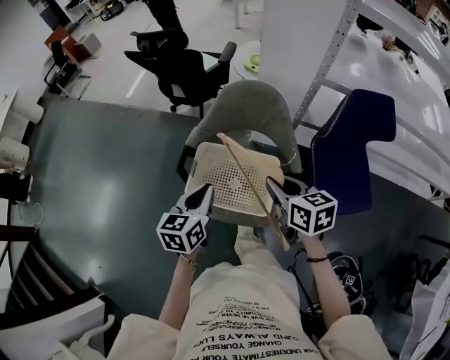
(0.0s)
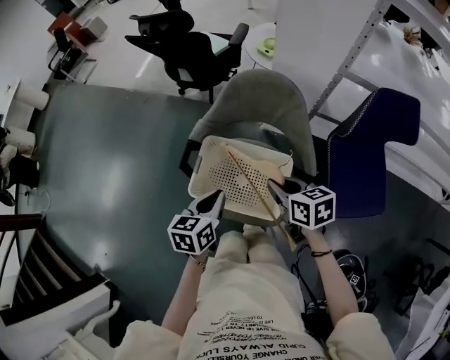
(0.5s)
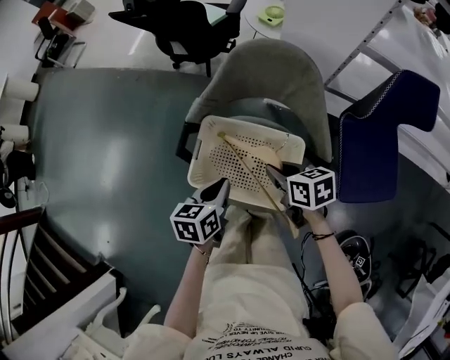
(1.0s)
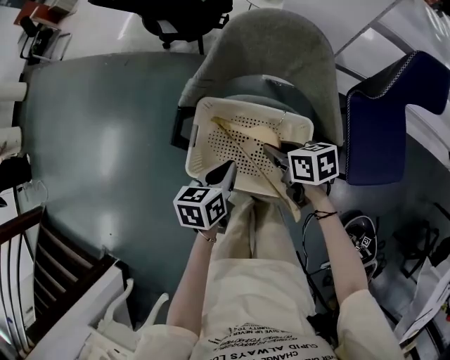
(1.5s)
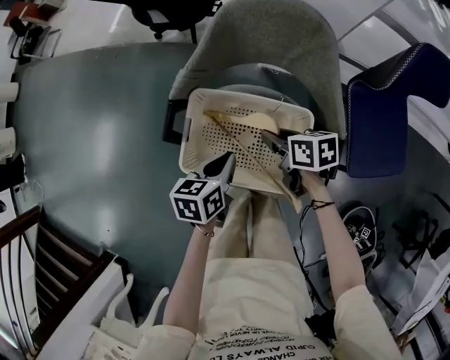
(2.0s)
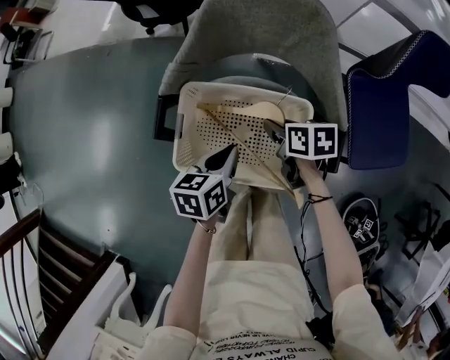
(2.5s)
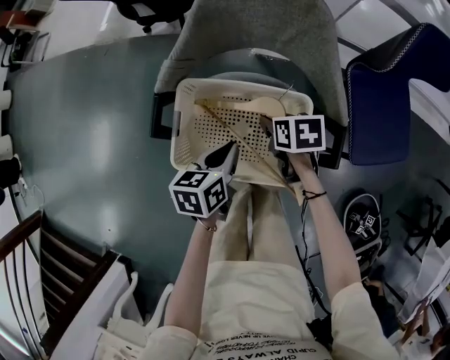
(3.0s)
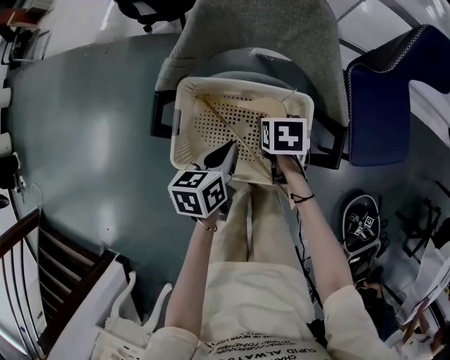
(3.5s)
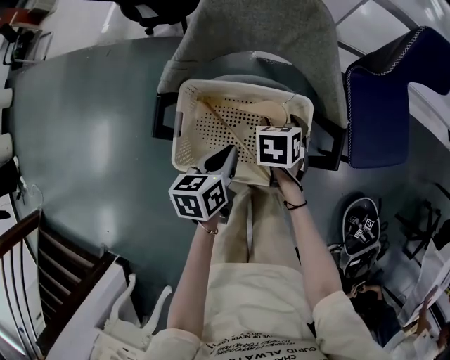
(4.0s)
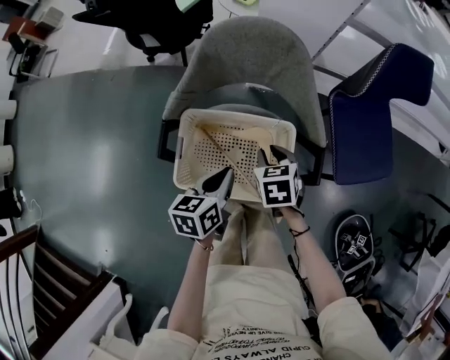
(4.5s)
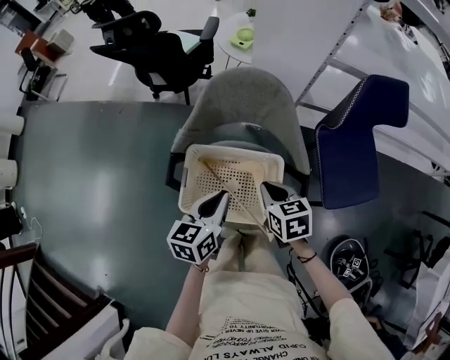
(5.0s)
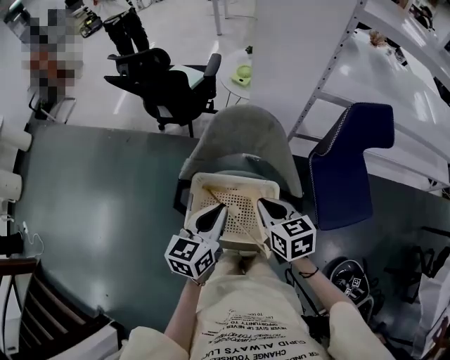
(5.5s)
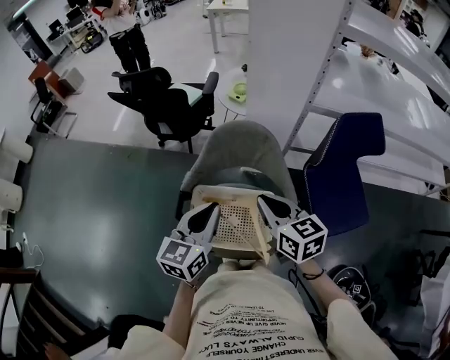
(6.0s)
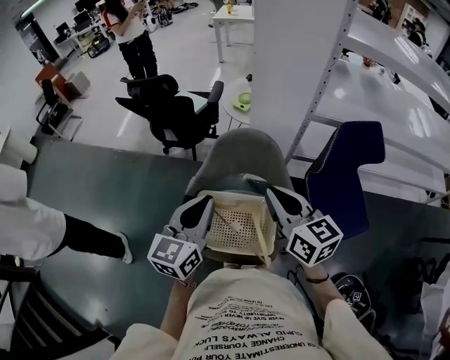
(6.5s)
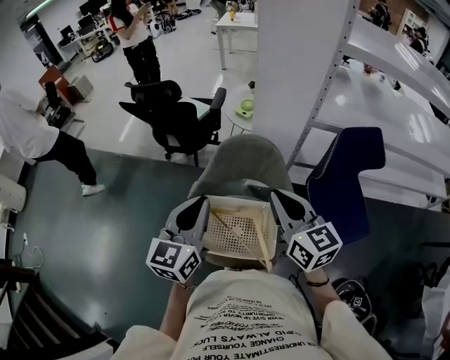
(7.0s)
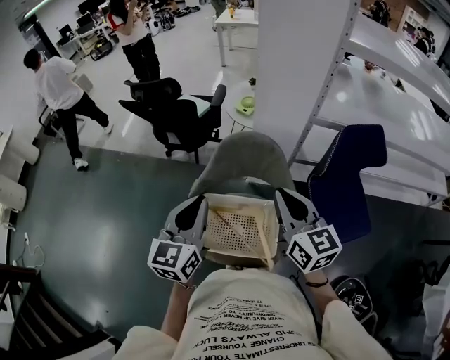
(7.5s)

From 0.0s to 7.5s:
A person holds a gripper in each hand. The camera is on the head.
From 0.0s to 2.0s: Both grippers travel together downward, approximately 20 cm. The left gripper changes its angle by approximately 20 degrees. Meanwhile the right gripper turns by about 30 degrees.
From 2.0s to 4.0s: The right gripper changes place by roughly 5 cm, changes its angle by some 50 degrees, and opens its fingers.
From 4.0s to 5.5s: Both grippers move upward, approximately 25 cm. The right gripper points its fingers some 30 degrees further upward, and closes its fingers. Meanwhile the left gripper turns by some 30 degrees.
From 5.5s to 7.5s: The left gripper travels upward and to the left by approximately 15 cm; the right gripper heads upward, covering approximately 20 cm, and turns by about 30 degrees.

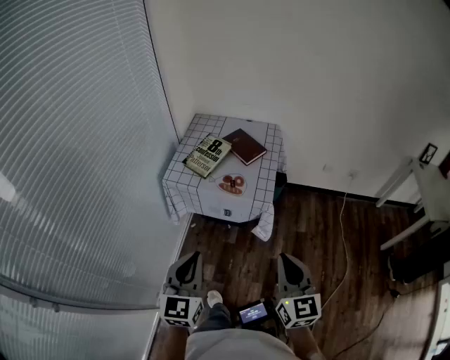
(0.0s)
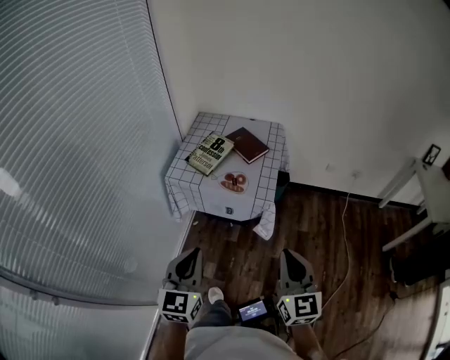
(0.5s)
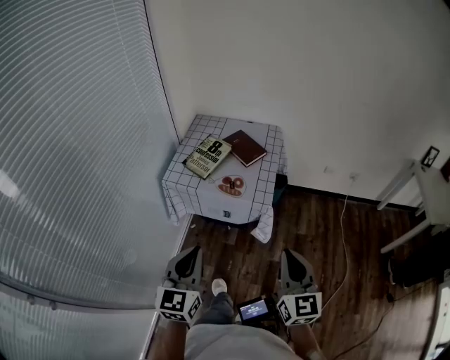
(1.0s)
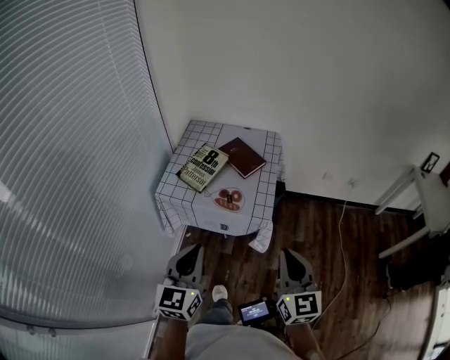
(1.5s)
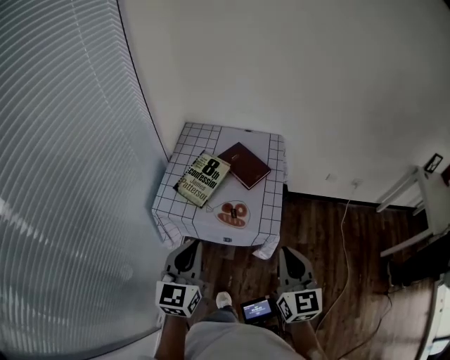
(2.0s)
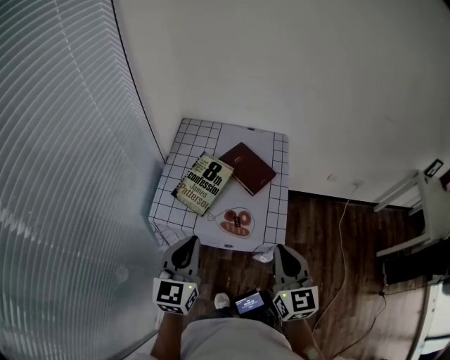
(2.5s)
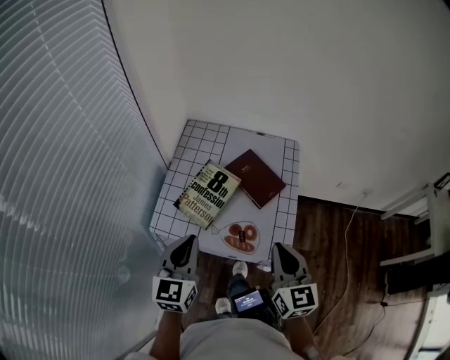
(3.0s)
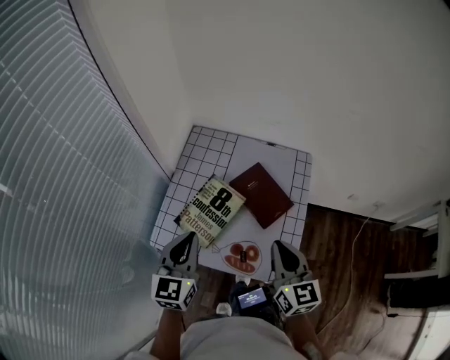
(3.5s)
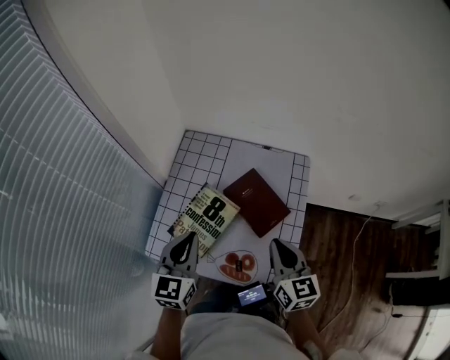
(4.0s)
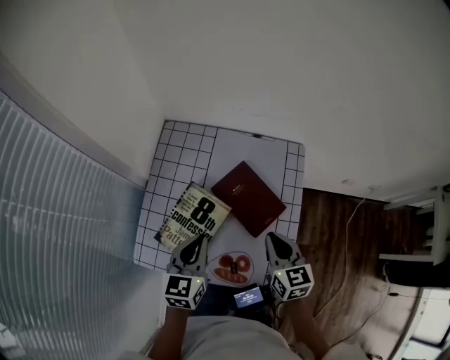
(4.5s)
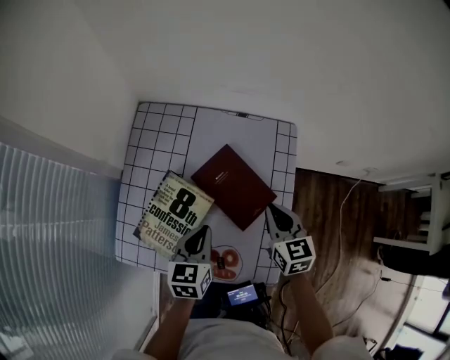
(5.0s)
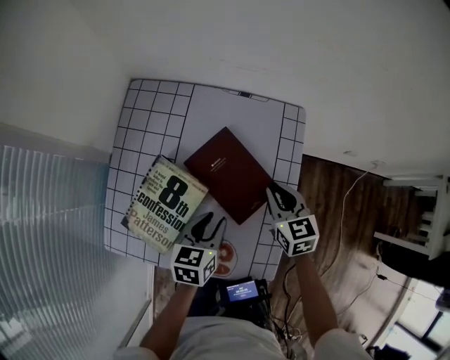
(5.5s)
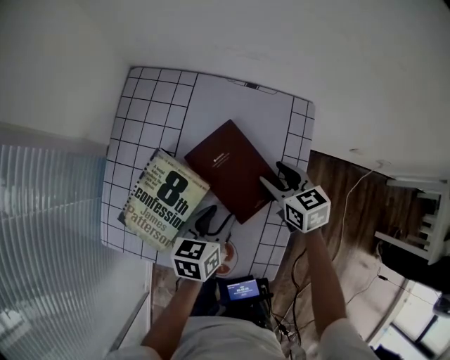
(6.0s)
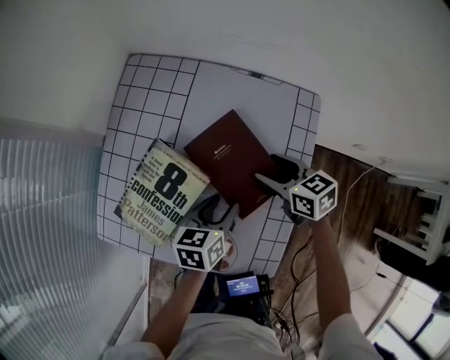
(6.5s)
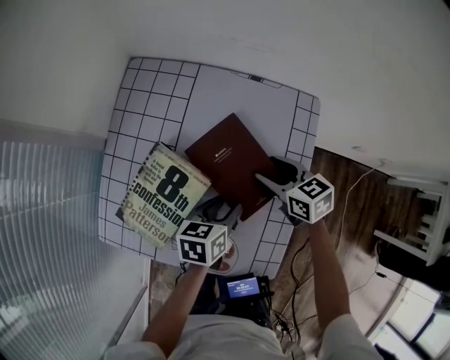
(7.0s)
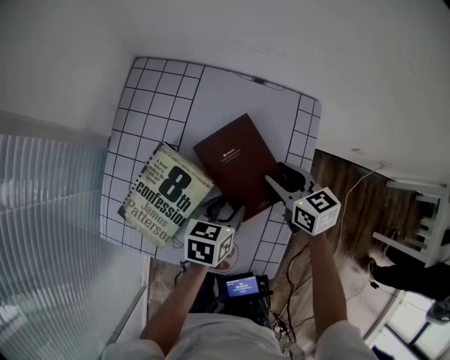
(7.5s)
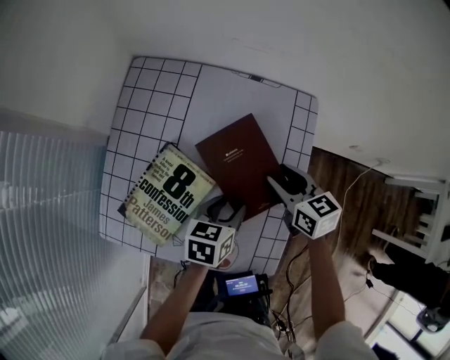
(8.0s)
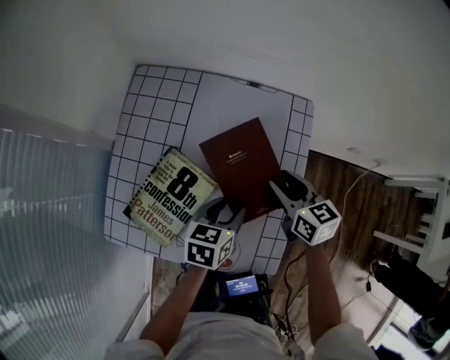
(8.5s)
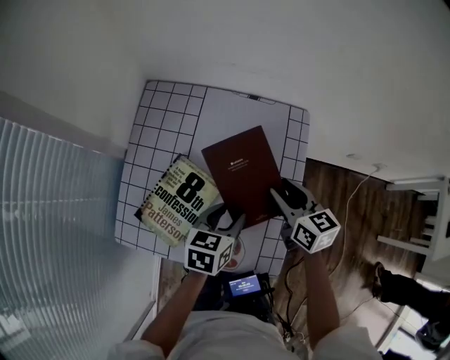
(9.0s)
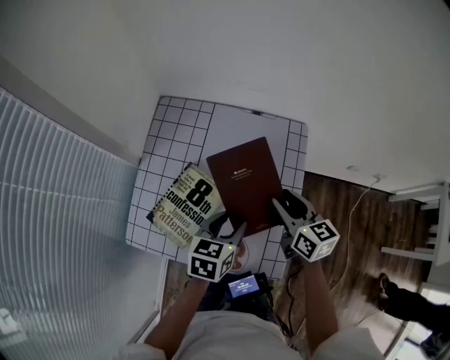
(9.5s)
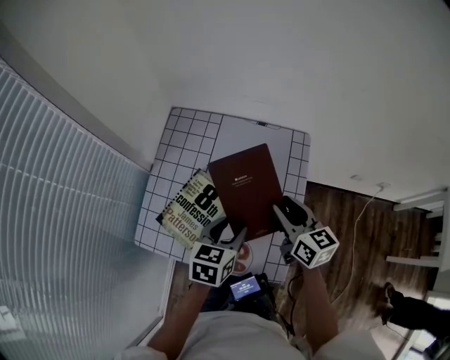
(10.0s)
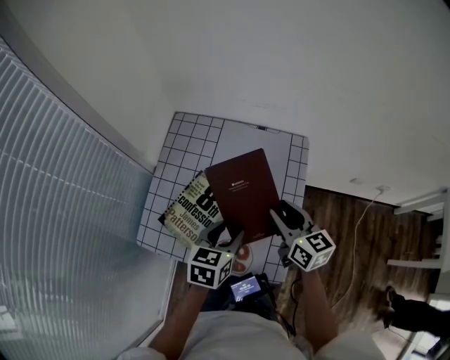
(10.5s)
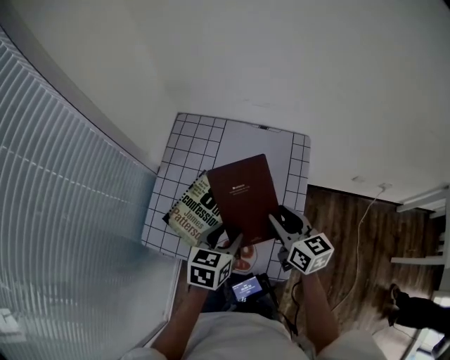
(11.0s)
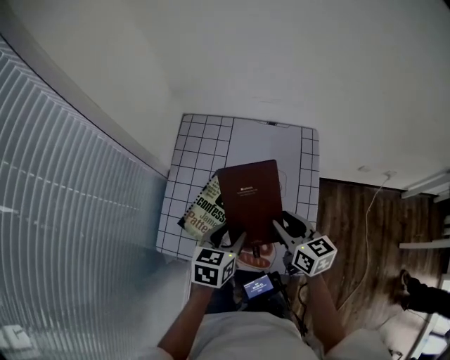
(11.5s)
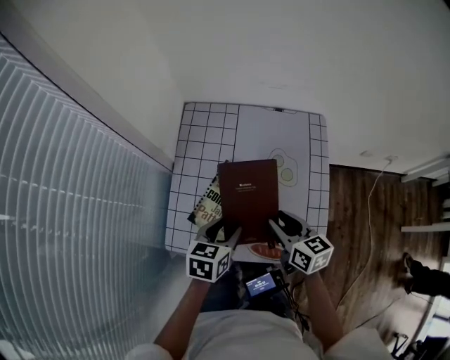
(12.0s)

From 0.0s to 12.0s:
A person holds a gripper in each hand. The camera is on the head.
From 0.0s to 2.0s: The grippers both shift forward by about 20 cm.
From 2.0s to 4.0s: Both grippers travel together forward, roughly 30 cm.
From 4.0s to 6.0s: The left gripper is displaced downward and to the right by roughly 30 cm, changes its angle by roughly 40 degrees, and opens its fingers, while the right gripper moves downward and forward, roughly 25 cm, rotates approximately 30 degrees, and opens.
From 6.0s to 8.0s: The grippers make only small movements.
From 8.0s to 10.0s: The left gripper is displaced upward by approximately 15 cm. The right gripper is displaced upward and backward by roughly 15 cm.
From 10.0s to 12.0s: The left gripper travels to the left by roughly 15 cm. Meanwhile the right gripper goes roughly 15 cm to the left, backward and downward.

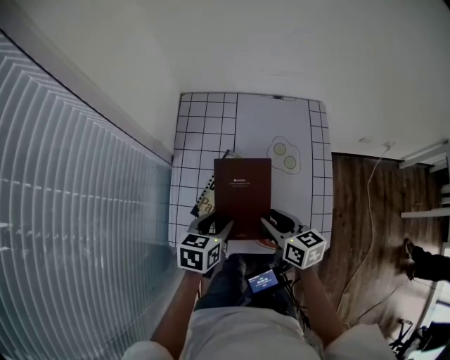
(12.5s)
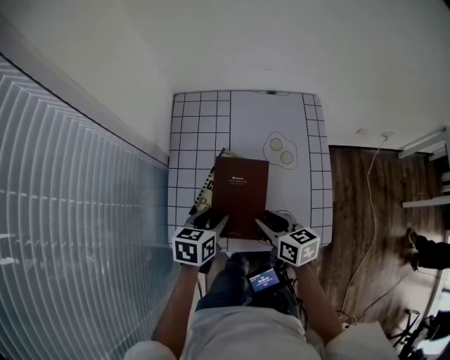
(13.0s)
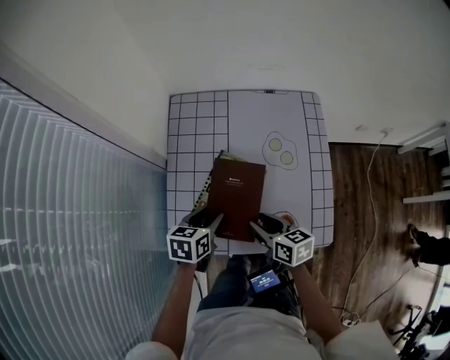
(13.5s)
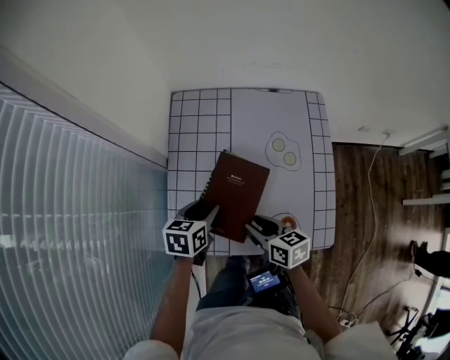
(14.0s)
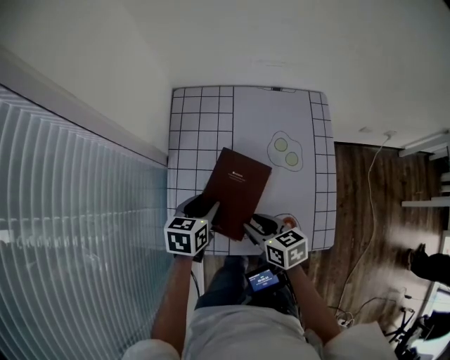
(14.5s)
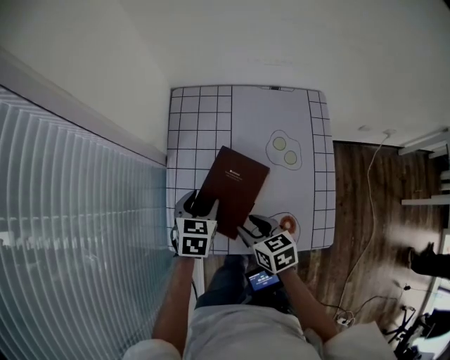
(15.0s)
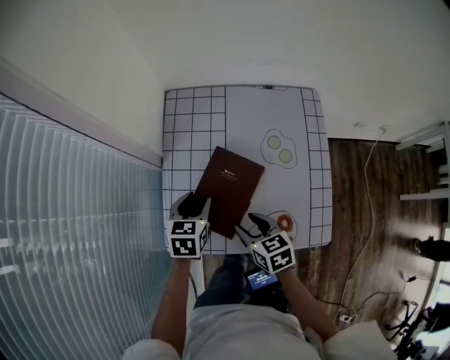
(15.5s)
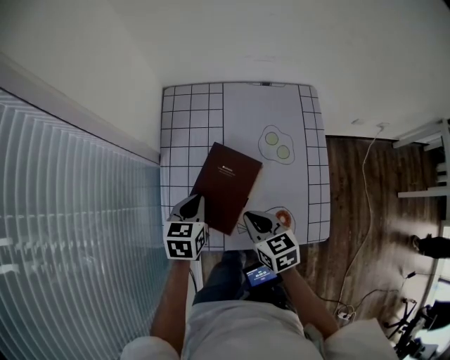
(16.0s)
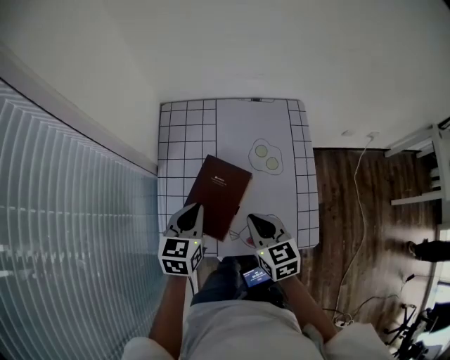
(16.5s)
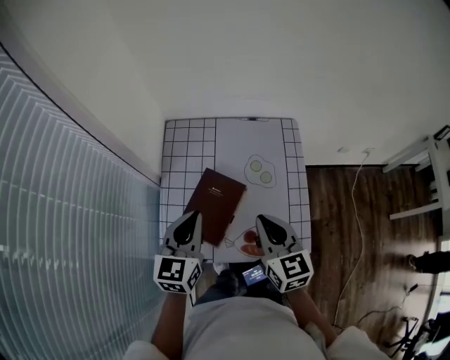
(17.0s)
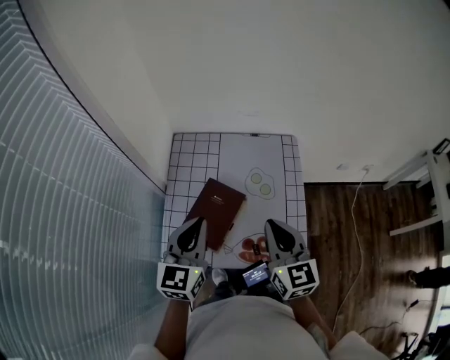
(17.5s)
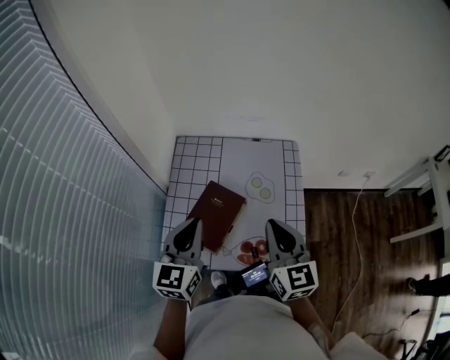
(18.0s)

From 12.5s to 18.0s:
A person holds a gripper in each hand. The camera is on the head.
From 12.5s to 14.5s: The right gripper shifts some 5 cm to the left; the left gripper moves forward, roughly 5 cm.
From 14.5s to 16.0s: The left gripper closes up; the right gripper closes.
From 16.0s to 18.0s: The right gripper heads upward and to the right, covering approximately 25 cm, and swivels approximately 40 degrees. Meanwhile the left gripper goes approximately 25 cm upward, and angles its fingers upward, by about 30 degrees.

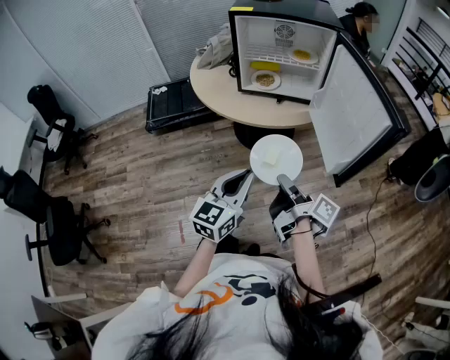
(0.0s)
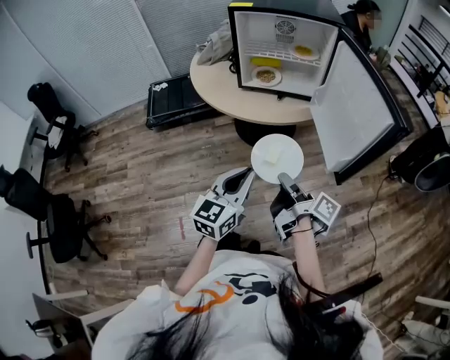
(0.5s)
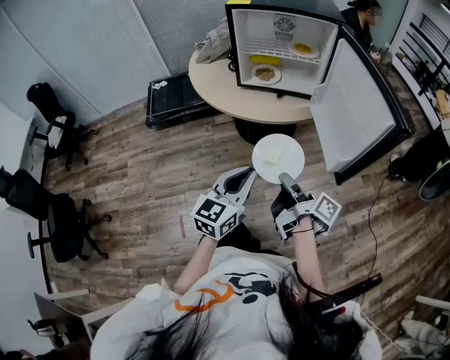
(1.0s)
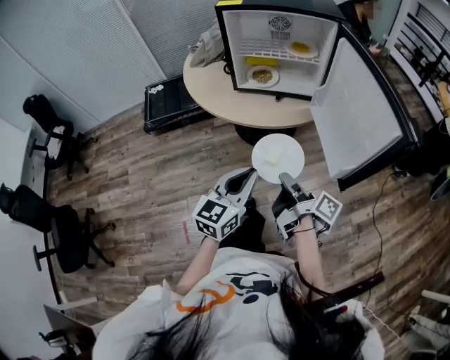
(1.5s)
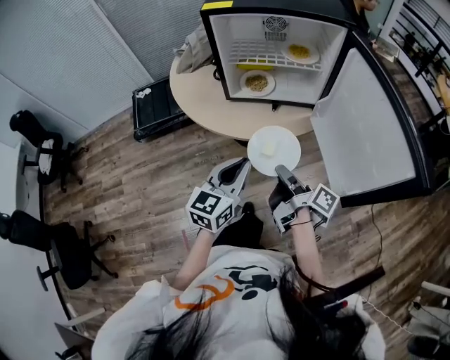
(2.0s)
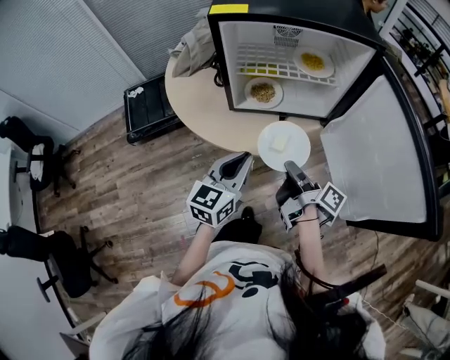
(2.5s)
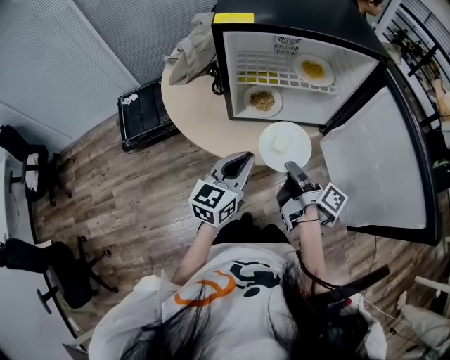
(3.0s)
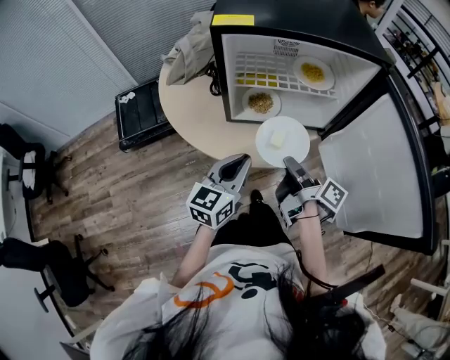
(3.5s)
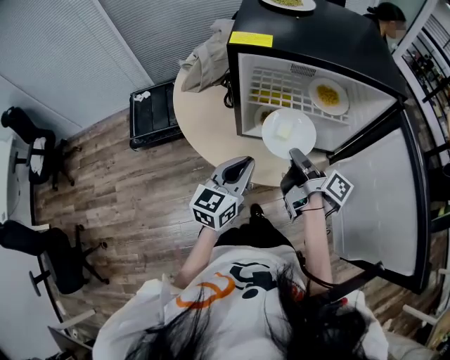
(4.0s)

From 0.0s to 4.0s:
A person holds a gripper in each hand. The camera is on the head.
From 0.0s to 2.0s: The left gripper shifts by roughly 15 cm.
From 2.0s to 4.0s: The left gripper shifts by roughly 20 cm.
